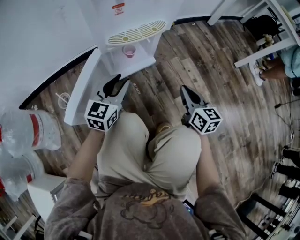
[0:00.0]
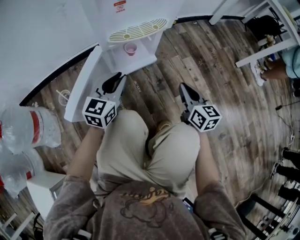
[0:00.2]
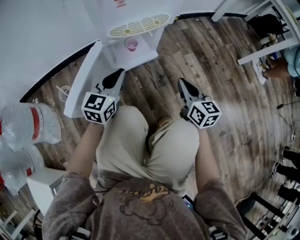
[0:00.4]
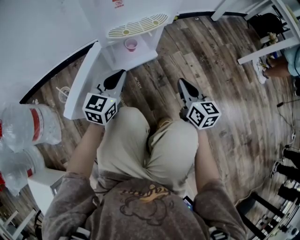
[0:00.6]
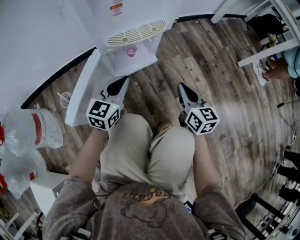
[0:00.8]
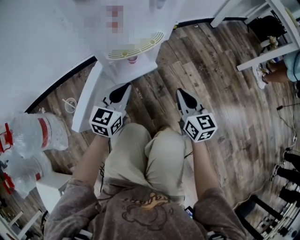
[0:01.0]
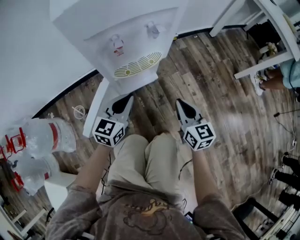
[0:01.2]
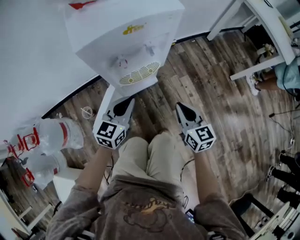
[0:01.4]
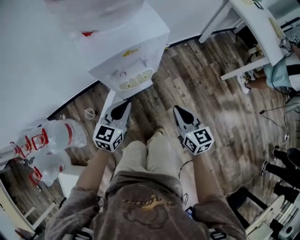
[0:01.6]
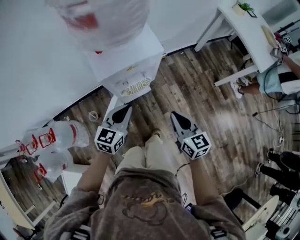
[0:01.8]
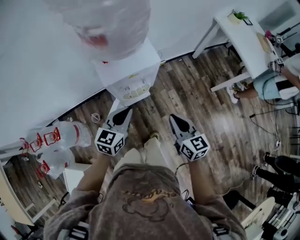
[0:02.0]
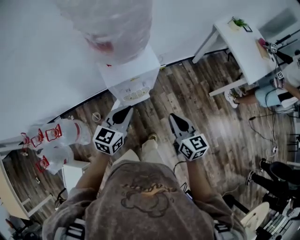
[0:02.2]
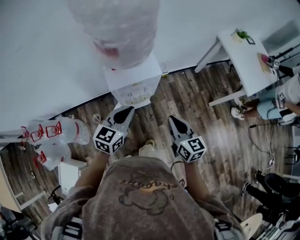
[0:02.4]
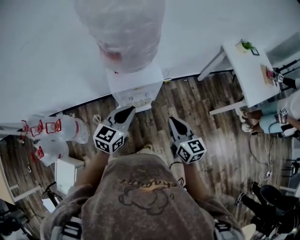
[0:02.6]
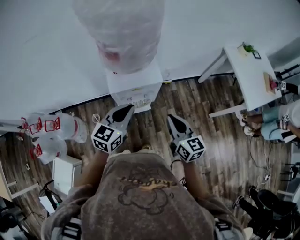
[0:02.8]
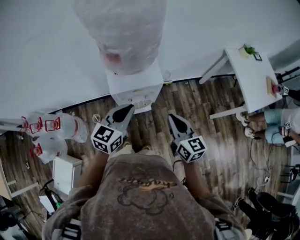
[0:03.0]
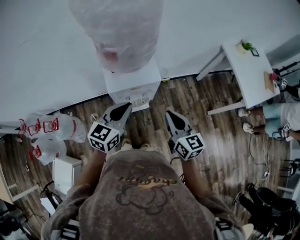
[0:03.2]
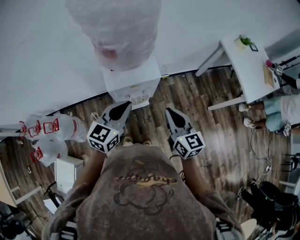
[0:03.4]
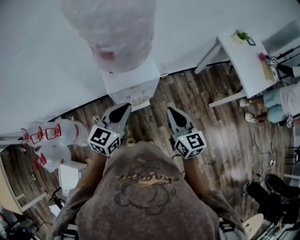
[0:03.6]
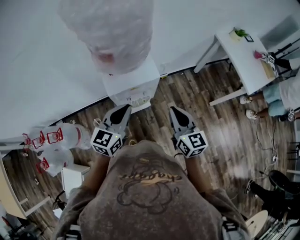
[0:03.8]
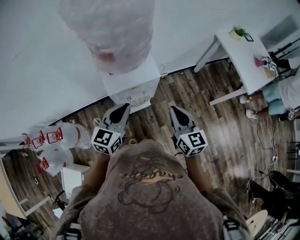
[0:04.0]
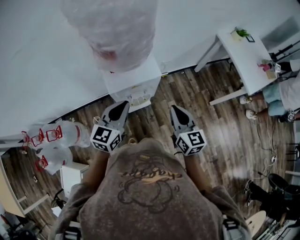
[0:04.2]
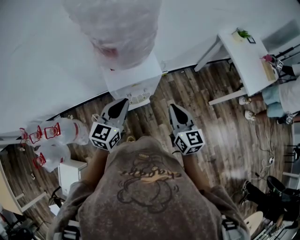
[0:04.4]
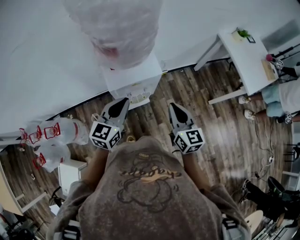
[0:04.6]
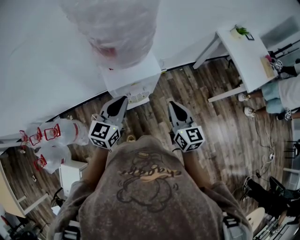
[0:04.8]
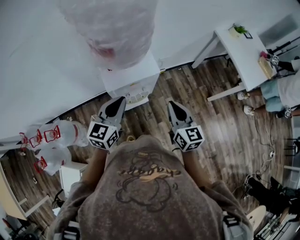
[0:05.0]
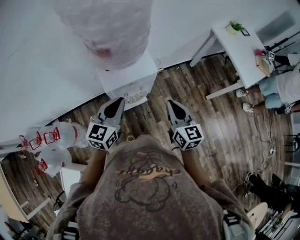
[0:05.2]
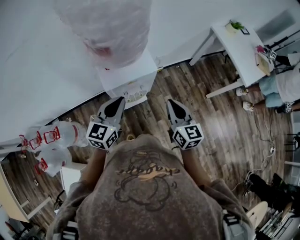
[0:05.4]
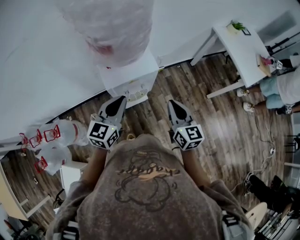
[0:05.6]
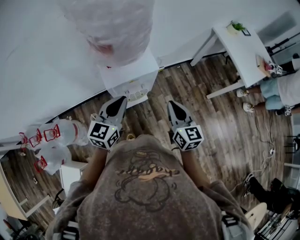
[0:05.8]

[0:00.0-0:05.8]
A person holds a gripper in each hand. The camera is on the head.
0:00.0 to 0:01.4: The two grippers go roughly 25 cm upward.
0:01.4 to 0:02.8: The two grippers go roughly 40 cm upward.
0:02.8 to 0:04.4: The grippers move only a little.
0:04.4 to 0:05.8: Neither gripper changes place.

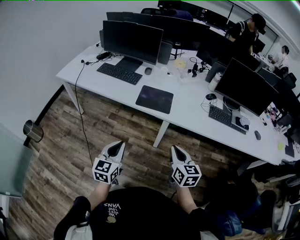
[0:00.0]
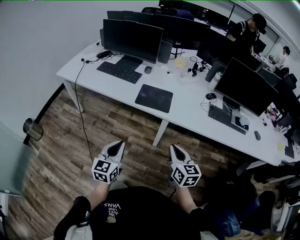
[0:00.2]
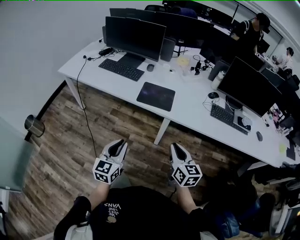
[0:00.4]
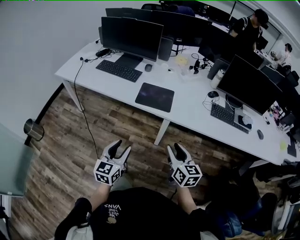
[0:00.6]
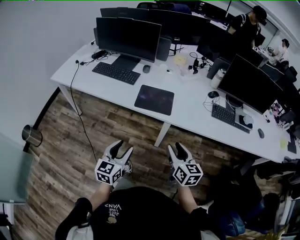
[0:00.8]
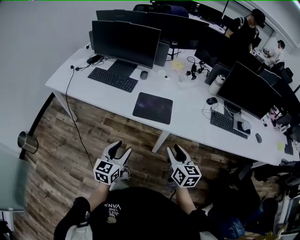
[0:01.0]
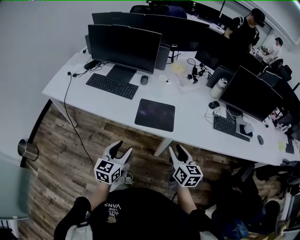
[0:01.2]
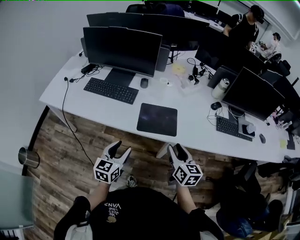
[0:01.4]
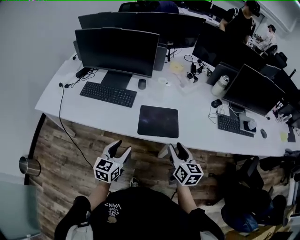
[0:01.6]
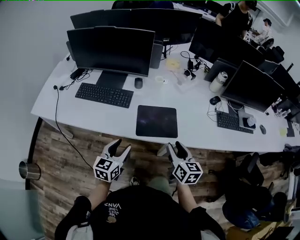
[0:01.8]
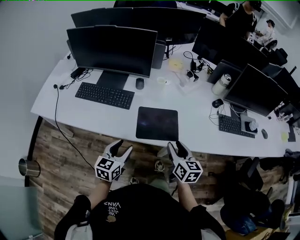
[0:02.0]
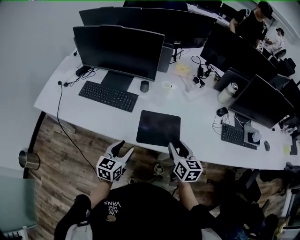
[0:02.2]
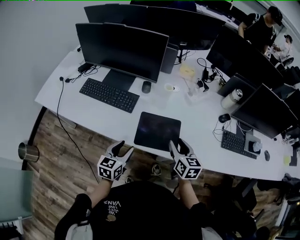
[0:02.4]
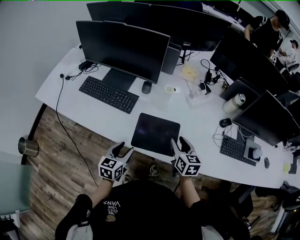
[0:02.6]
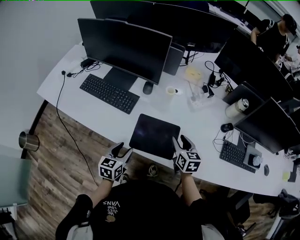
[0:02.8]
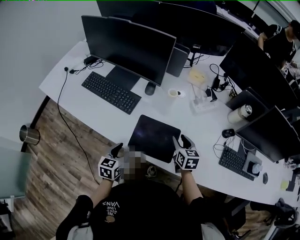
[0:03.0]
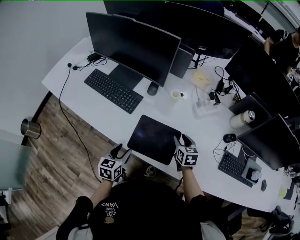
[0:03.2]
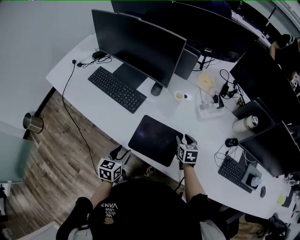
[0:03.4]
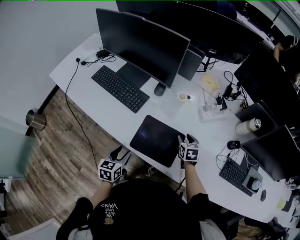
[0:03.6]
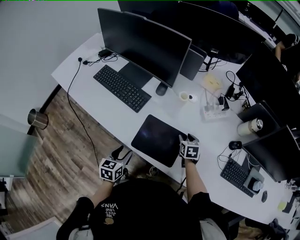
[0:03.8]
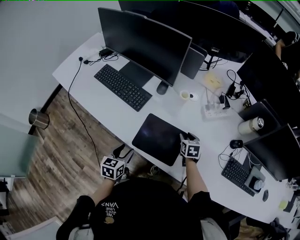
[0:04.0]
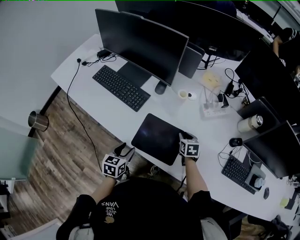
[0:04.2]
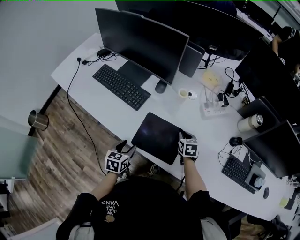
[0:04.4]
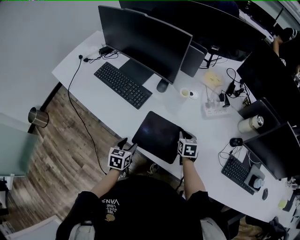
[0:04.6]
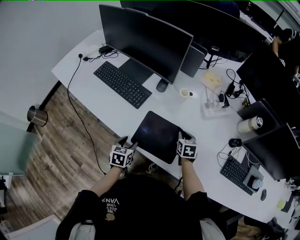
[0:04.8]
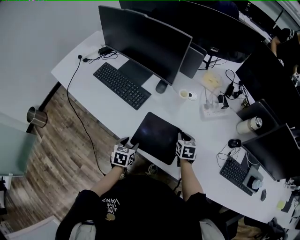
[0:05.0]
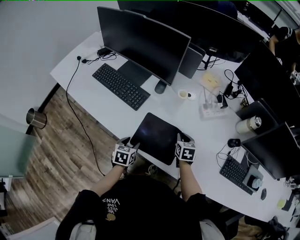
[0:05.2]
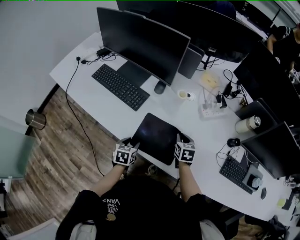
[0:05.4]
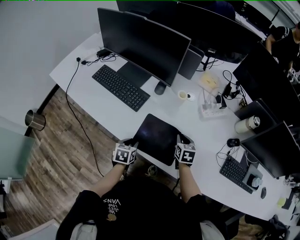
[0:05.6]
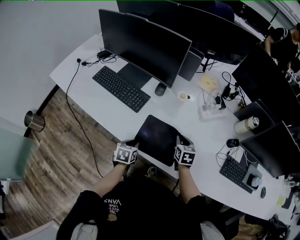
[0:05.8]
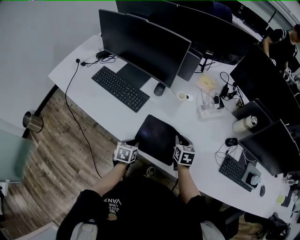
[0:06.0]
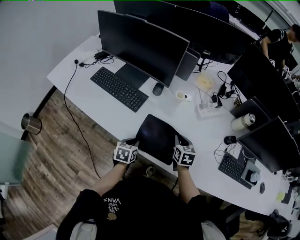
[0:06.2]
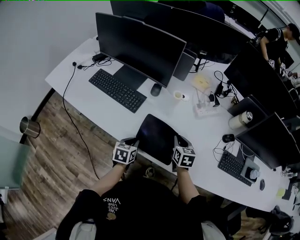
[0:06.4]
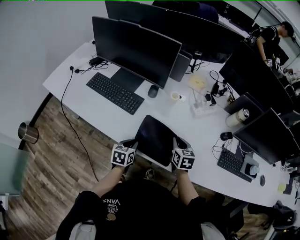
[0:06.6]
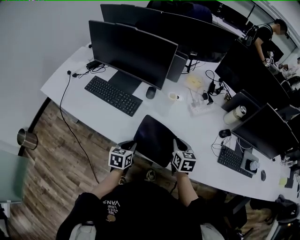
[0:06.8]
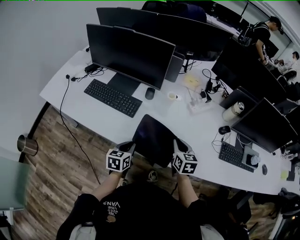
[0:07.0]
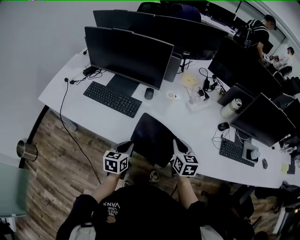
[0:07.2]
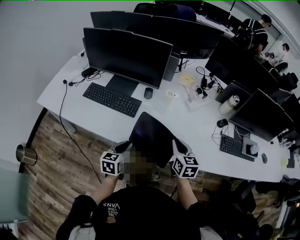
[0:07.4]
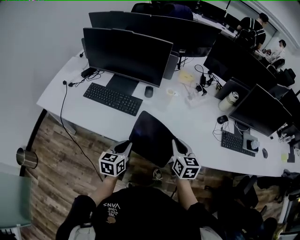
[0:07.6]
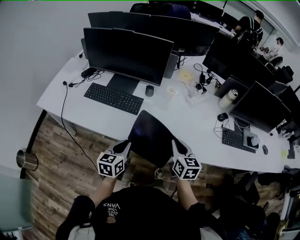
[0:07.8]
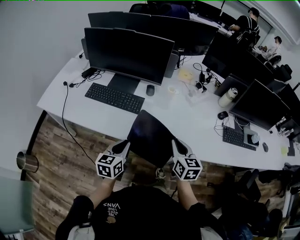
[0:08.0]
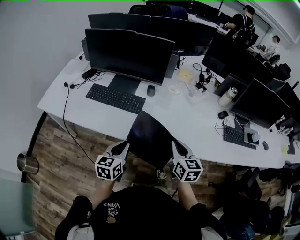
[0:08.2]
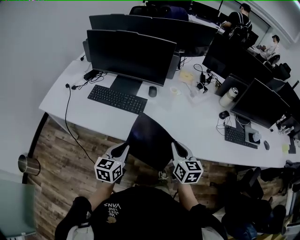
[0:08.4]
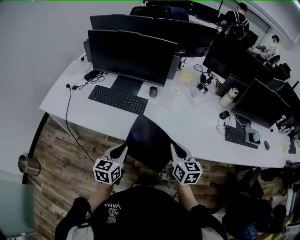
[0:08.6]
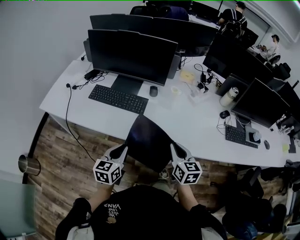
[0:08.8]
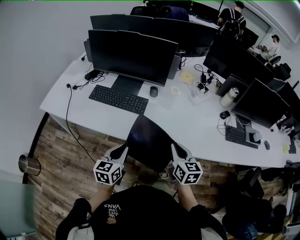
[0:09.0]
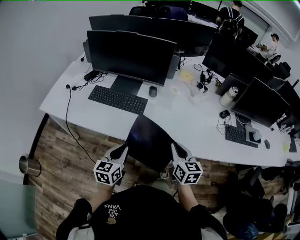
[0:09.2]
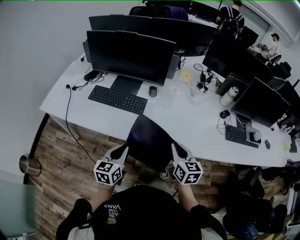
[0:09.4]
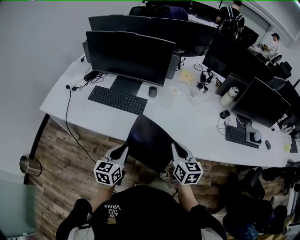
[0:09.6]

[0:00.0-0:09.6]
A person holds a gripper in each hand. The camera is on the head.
0:00.0 to 0:01.6: The grippers both shift forward by some 25 cm. The left gripper opens. Meanwhile the right gripper opens.
0:01.6 to 0:03.2: The left gripper goes about 15 cm downward and forward, and rotates some 30 degrees. The right gripper shifts some 30 cm forward and downward, and changes its angle by some 30 degrees.
0:03.2 to 0:04.8: The right gripper changes place by about 5 cm, and closes up. The left gripper heads downward, covering about 5 cm.
0:04.8 to 0:06.4: The left gripper closes up. The right gripper moves upward, about 5 cm.
0:06.4 to 0:08.0: The right gripper shifts approximately 20 cm backward, upward and to the left, while the left gripper moves upward, to the left and backward, about 20 cm, and turns by about 20 degrees.
0:08.0 to 0:09.6: The grippers make only small movements.

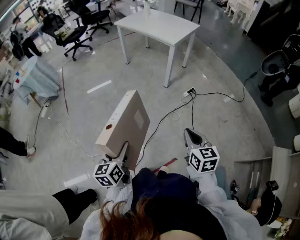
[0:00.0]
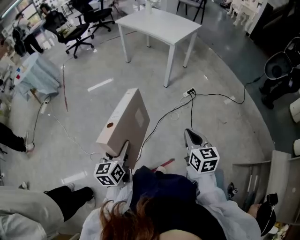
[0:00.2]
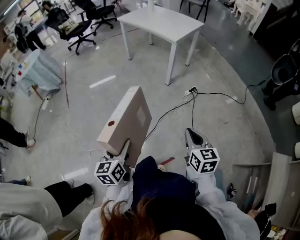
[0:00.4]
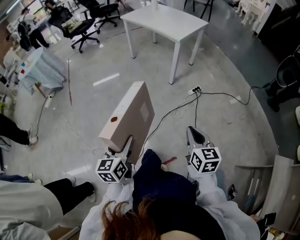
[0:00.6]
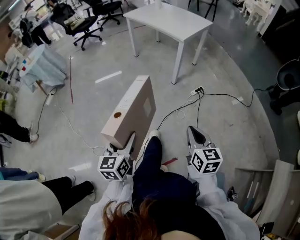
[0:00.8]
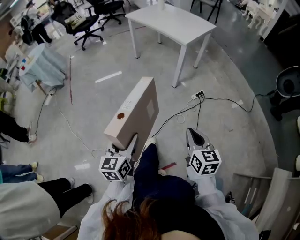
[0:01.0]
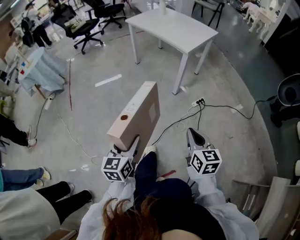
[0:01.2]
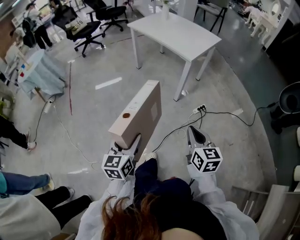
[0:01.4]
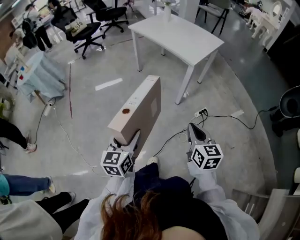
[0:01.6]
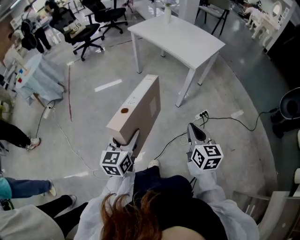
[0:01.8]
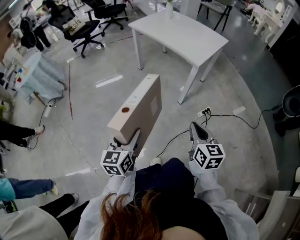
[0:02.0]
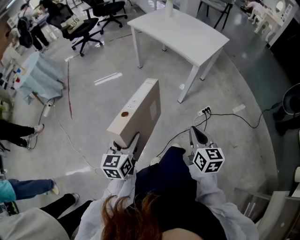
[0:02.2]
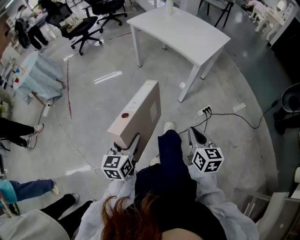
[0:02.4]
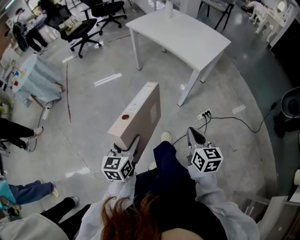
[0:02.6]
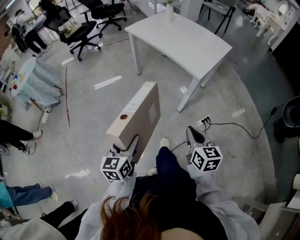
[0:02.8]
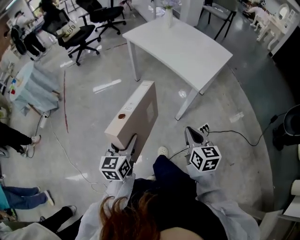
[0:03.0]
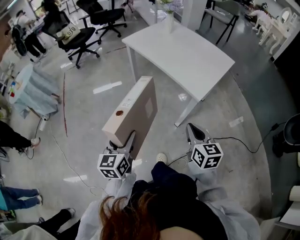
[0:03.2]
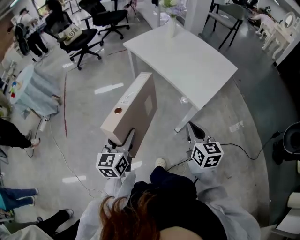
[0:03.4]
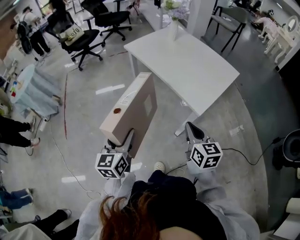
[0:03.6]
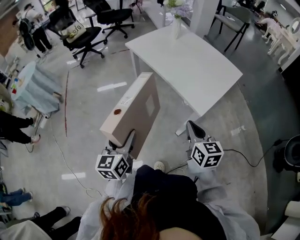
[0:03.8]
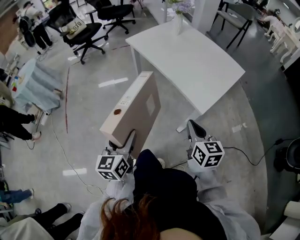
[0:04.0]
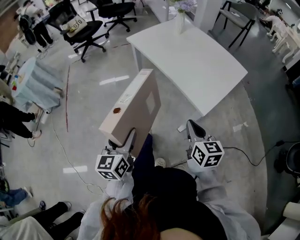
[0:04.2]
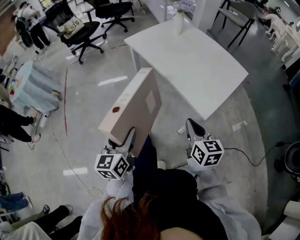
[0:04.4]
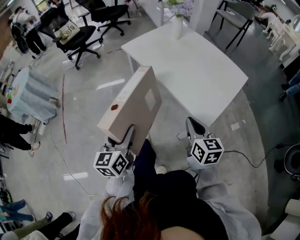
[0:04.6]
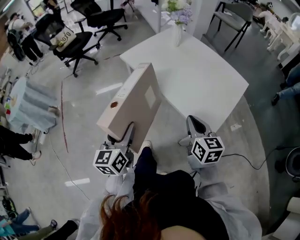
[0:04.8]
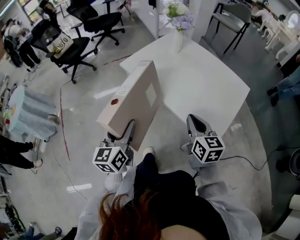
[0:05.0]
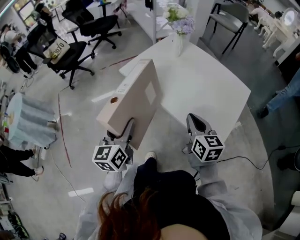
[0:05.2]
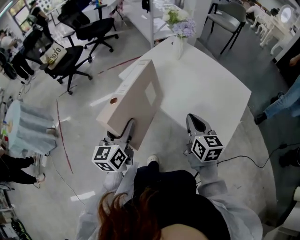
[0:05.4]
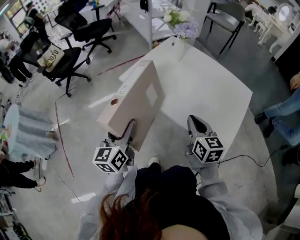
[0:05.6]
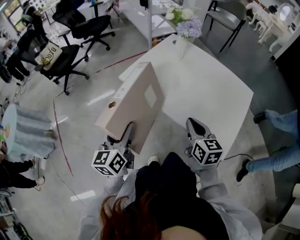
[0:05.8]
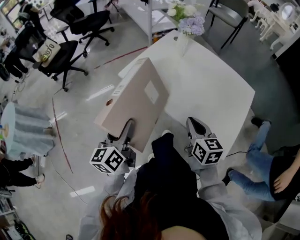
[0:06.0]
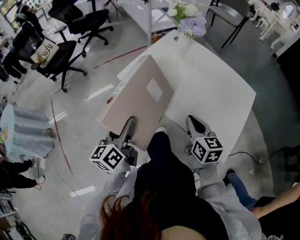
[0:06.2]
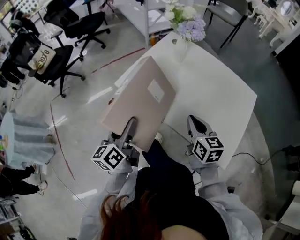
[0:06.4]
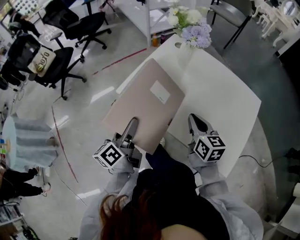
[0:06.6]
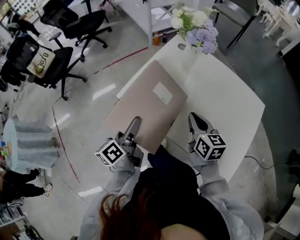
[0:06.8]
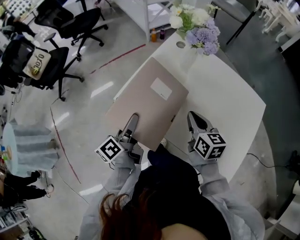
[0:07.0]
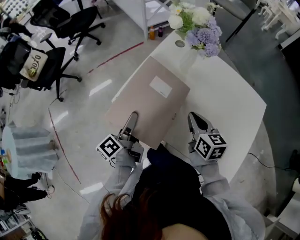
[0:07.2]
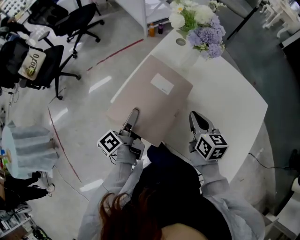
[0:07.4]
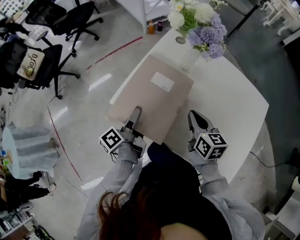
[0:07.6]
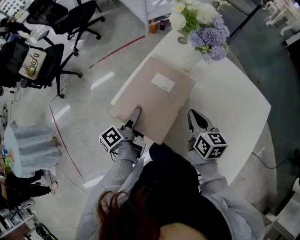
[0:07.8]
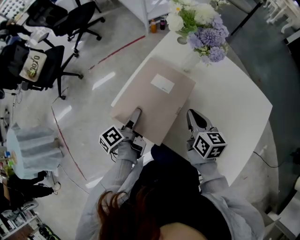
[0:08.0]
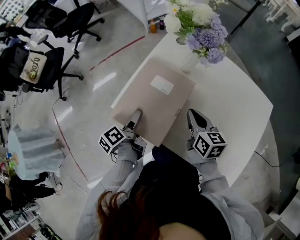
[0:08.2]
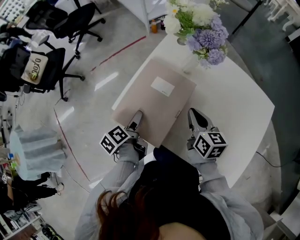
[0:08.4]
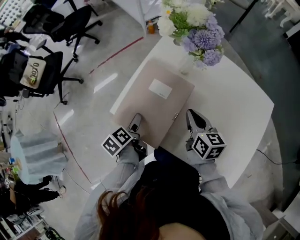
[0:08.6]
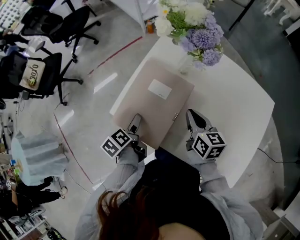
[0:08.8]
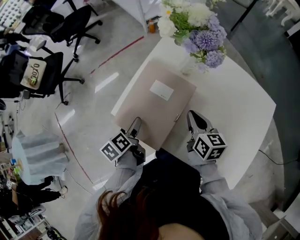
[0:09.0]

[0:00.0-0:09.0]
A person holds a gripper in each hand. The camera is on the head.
0:00.0 to 0:01.6: Both grippers travel together forward, roughly 25 cm.
0:01.6 to 0:03.0: Both grippers travel together forward, some 25 cm.
0:03.0 to 0:04.4: Both grippers move forward, about 20 cm.
0:04.4 to 0:06.0: Both grippers move forward, roughly 35 cm.
0:06.0 to 0:07.6: The left gripper goes roughly 30 cm forward and downward, and twists about 50 degrees counterclockwise, seen from behind. The right gripper is displaced forward by roughly 25 cm.
0:07.6 to 0:09.0: The left gripper shifts roughly 5 cm downward, tilts its fingers some 30 degrees downward, and opens its fingers.
